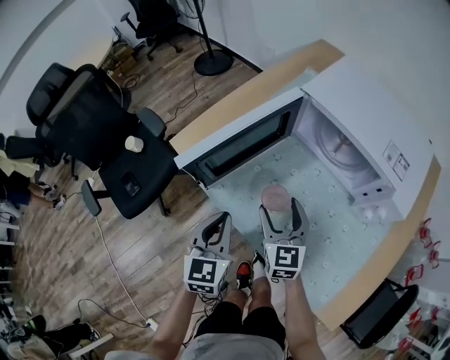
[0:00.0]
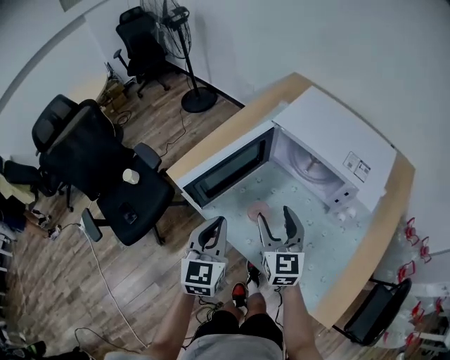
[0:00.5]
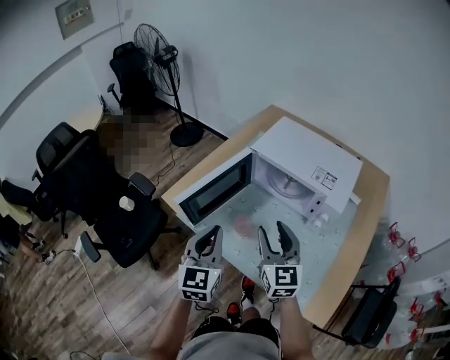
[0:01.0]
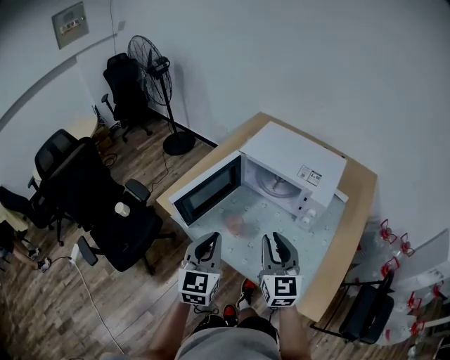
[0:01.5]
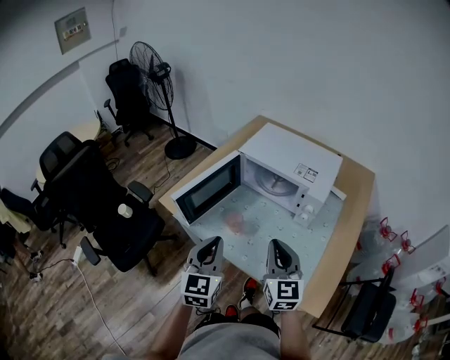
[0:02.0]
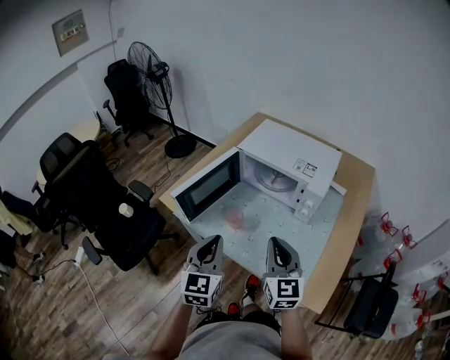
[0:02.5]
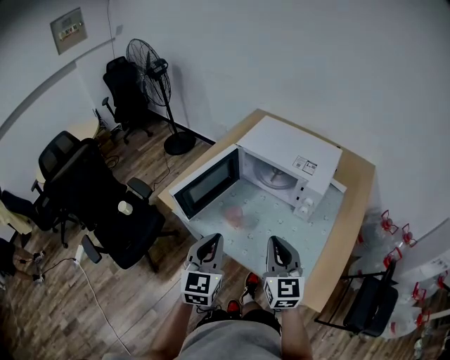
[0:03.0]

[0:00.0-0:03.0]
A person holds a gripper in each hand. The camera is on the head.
0:00.0 to 0:01.5: The left gripper shifts roughly 20 cm upward, while the right gripper goes roughly 25 cm upward, backward and to the right, and closes up.
0:01.5 to 0:03.0: The right gripper ends up roughly 5 cm from where it was.

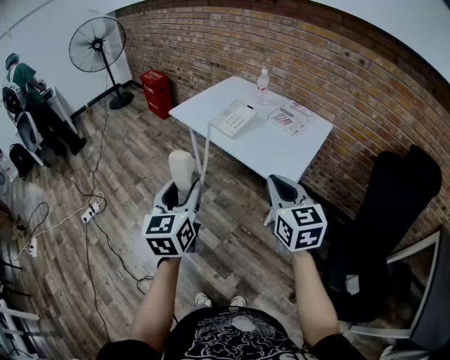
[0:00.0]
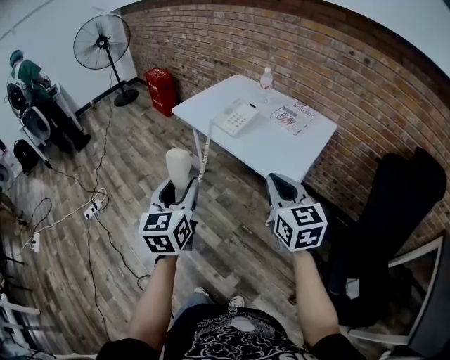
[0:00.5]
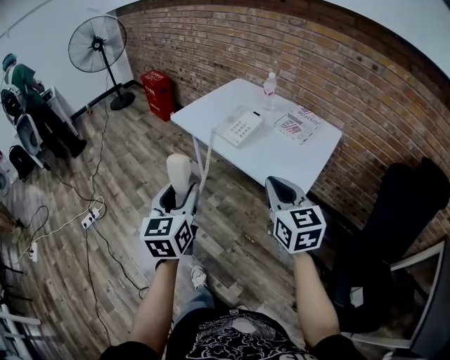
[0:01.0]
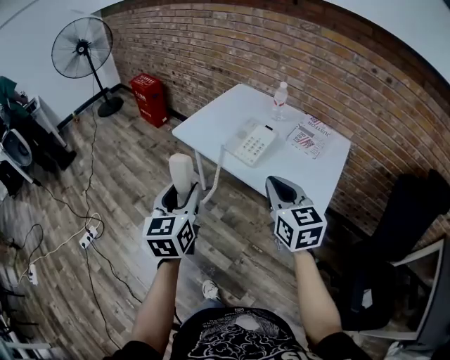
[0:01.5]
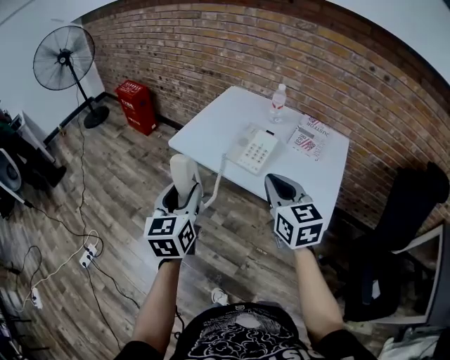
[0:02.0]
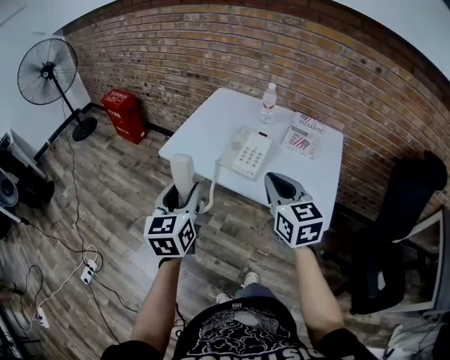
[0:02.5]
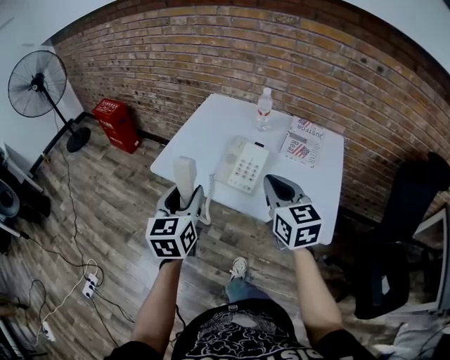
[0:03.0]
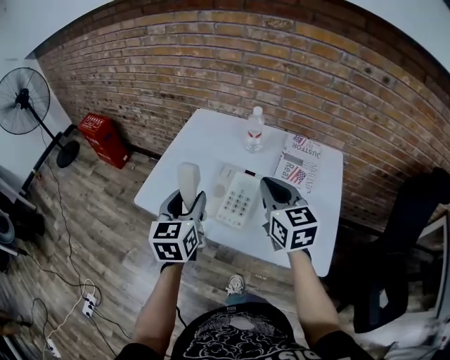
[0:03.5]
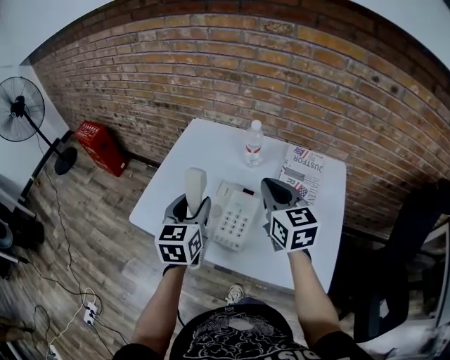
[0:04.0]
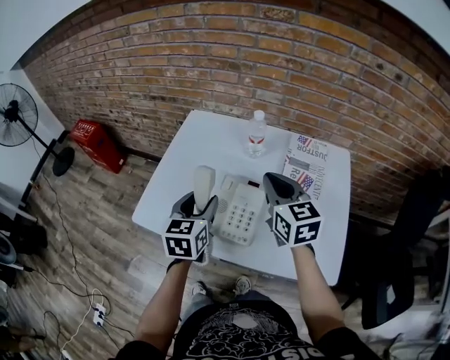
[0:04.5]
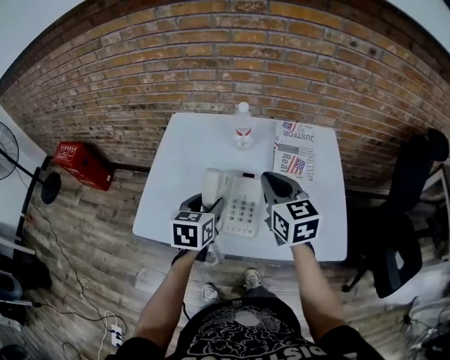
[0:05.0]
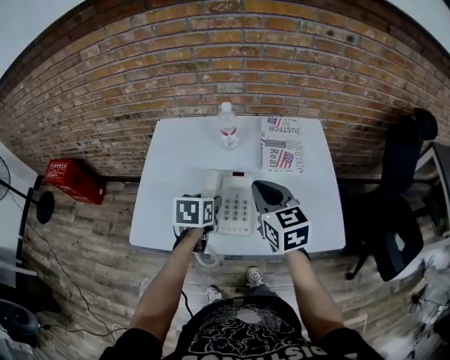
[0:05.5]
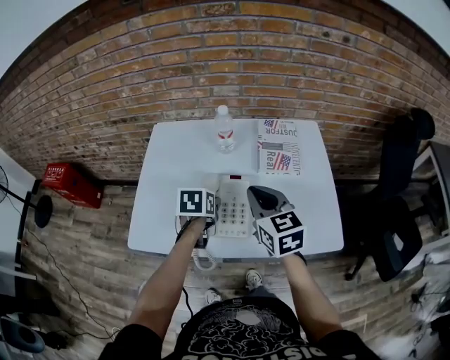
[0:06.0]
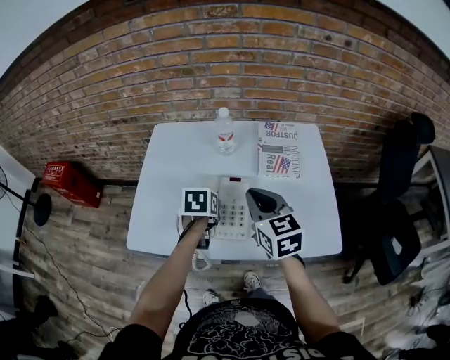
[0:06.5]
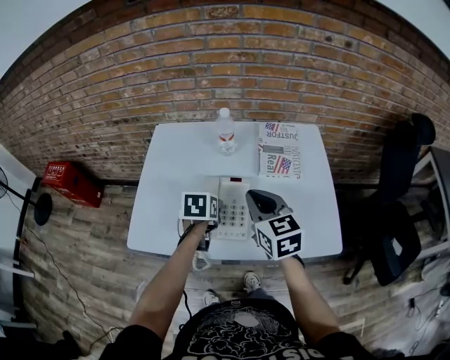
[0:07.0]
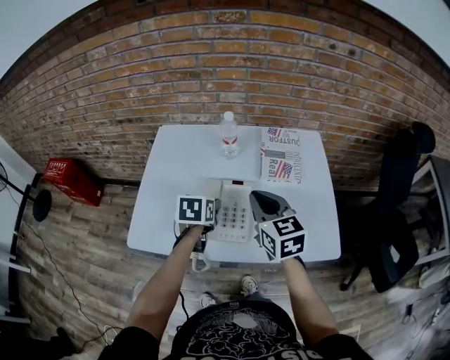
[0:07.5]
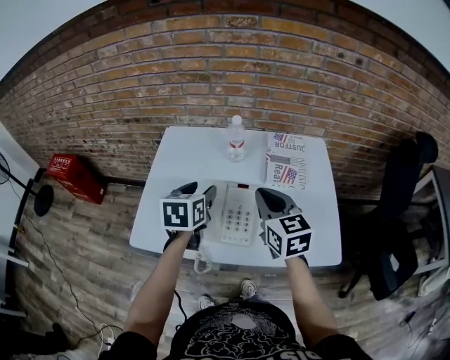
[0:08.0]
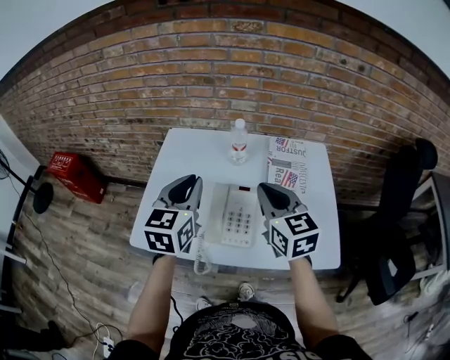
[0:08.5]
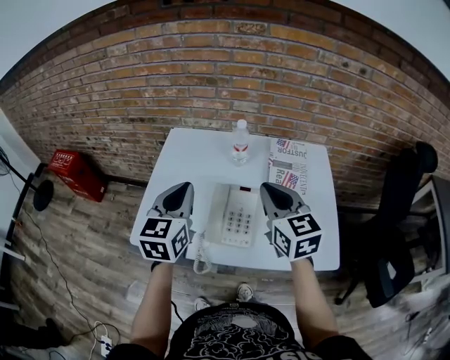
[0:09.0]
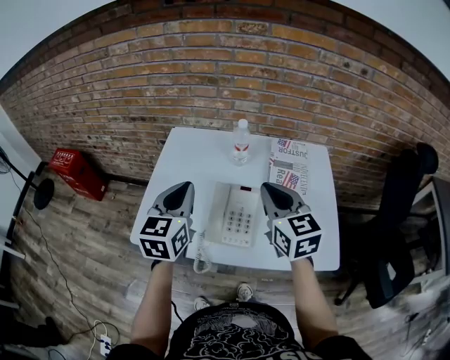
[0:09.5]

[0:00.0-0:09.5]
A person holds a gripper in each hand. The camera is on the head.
0:00.0 to 0:02.0: The grippers both shift forward and to the left by some 30 cm.
0:02.0 to 0:04.0: The two grippers go about 30 cm forward.
0:04.0 to 0:05.5: The right gripper shifts by some 5 cm. Meanwhile the left gripper is displaced downward by some 10 cm, and rotates approximately 40 degrees.
0:05.5 to 0:07.5: The grippers make only small movements.
0:07.5 to 0:09.5: The right gripper travels upward by some 5 cm. The left gripper moves upward, approximately 20 cm, angles its fingers upward, by about 40 degrees, and closes.

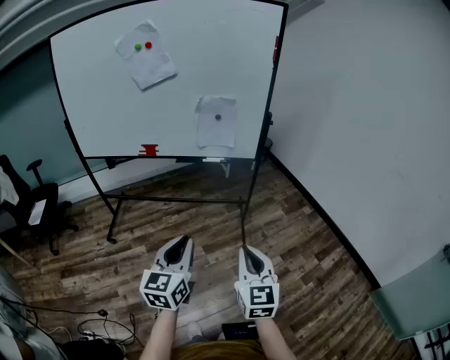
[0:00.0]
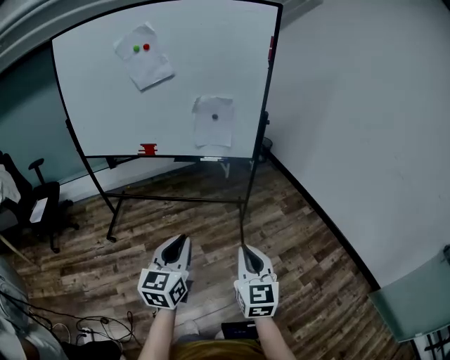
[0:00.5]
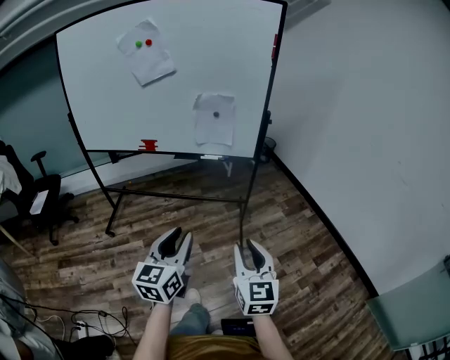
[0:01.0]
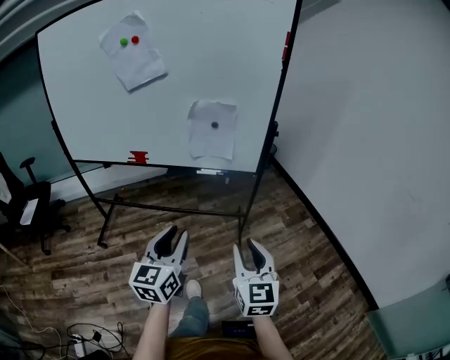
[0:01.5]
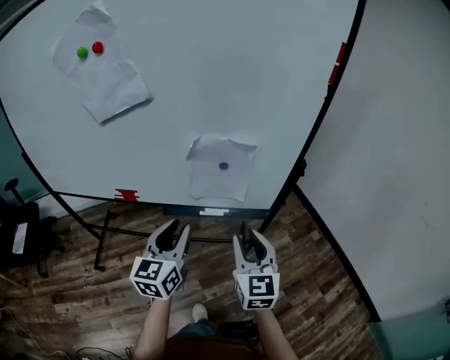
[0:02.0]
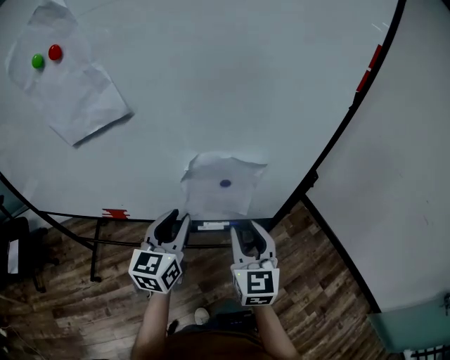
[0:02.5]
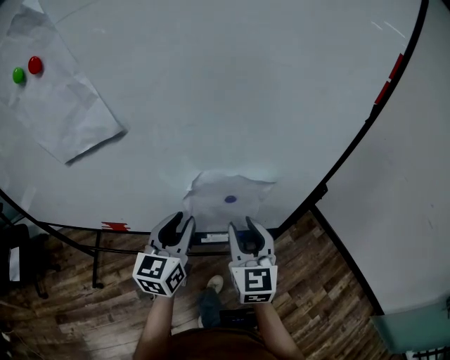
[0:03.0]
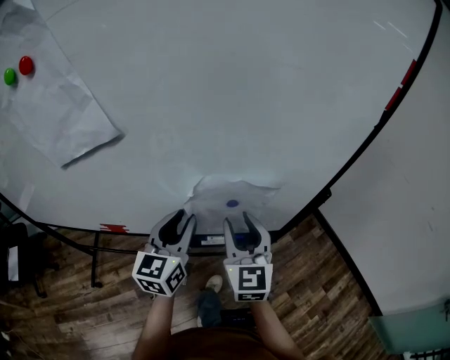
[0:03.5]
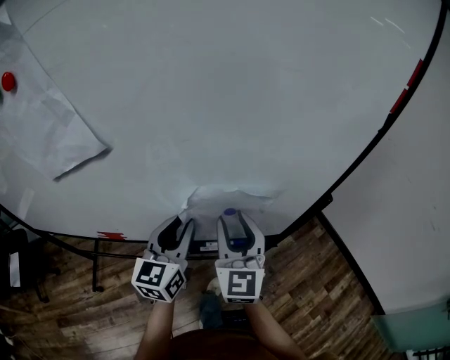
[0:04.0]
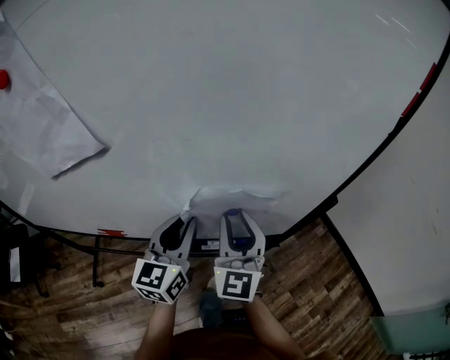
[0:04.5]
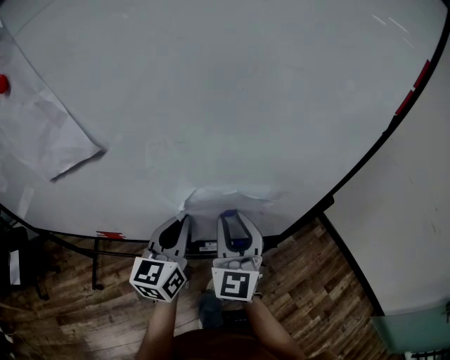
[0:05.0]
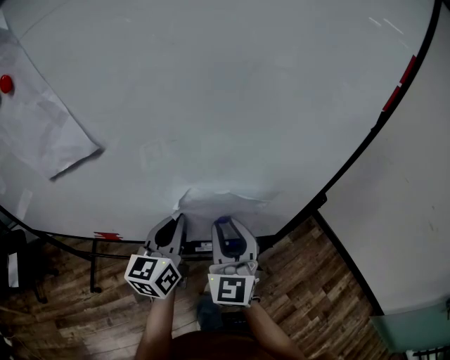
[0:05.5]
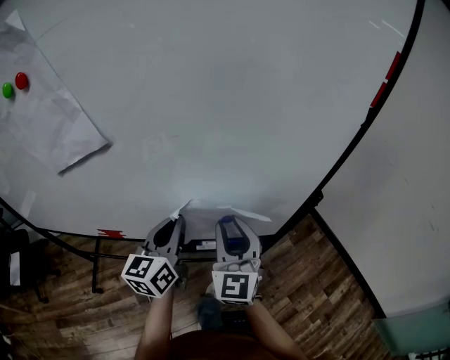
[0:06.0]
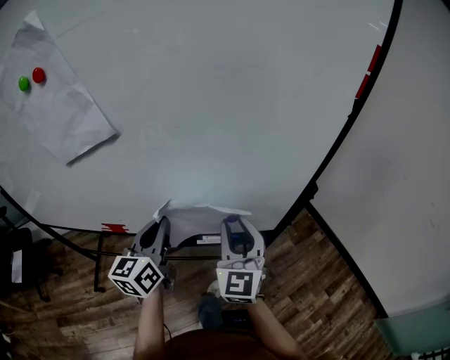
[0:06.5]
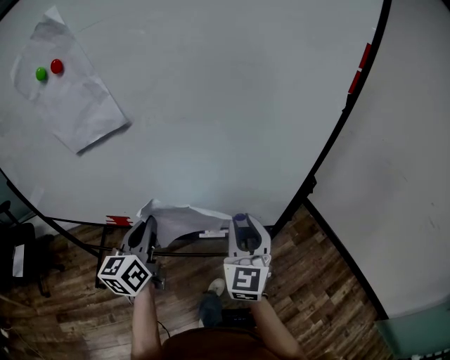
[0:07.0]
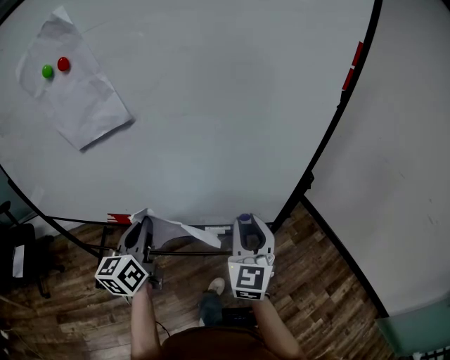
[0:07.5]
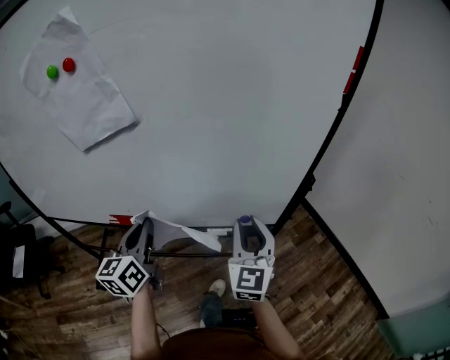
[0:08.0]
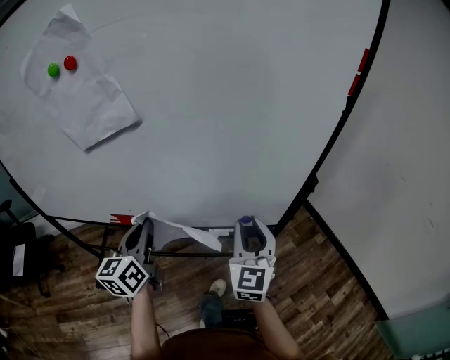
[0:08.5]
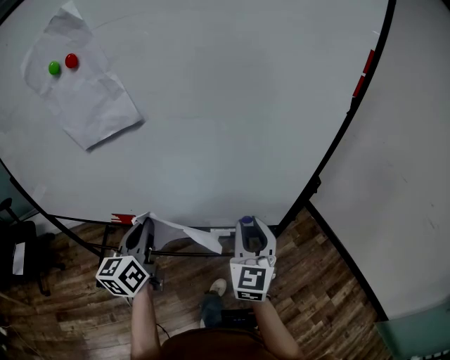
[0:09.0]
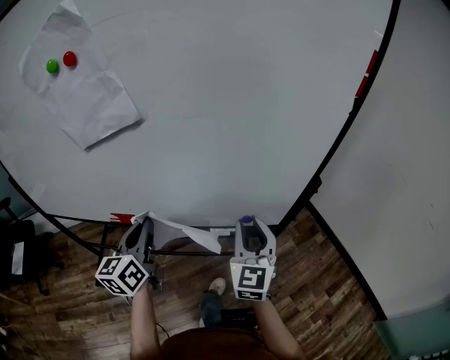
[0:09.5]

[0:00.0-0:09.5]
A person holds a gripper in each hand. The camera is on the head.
0:00.0 to 0:02.0: Both grippers are carried forward, some 40 cm. The left gripper opens up. The right gripper opens up.
0:02.0 to 0:04.0: The right gripper moves forward and to the left, approximately 20 cm. The left gripper heads forward, covering approximately 20 cm.
0:04.0 to 0:05.5: The left gripper closes its fingers.
0:05.5 to 0:07.5: The right gripper shifts about 10 cm backward and to the right. Meanwhile the left gripper shifts some 15 cm backward and to the left.
0:07.5 to 0:09.5: There are only small adjustments of the grippers.

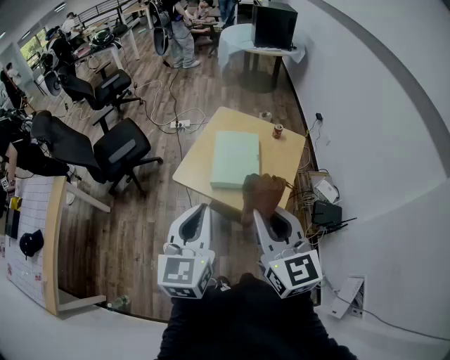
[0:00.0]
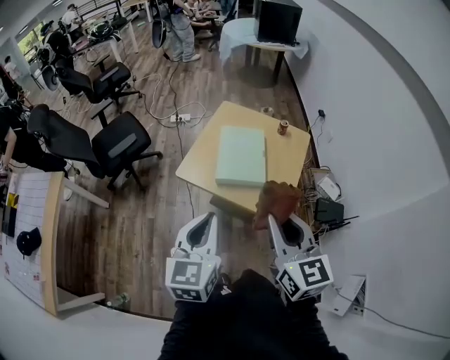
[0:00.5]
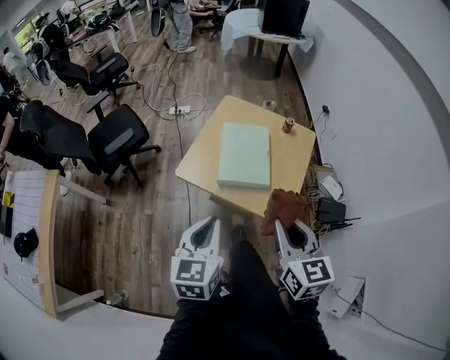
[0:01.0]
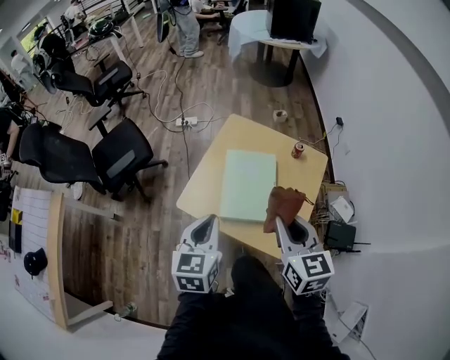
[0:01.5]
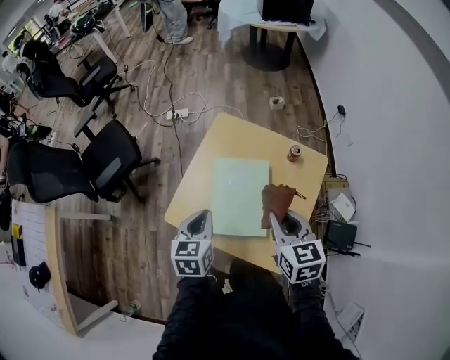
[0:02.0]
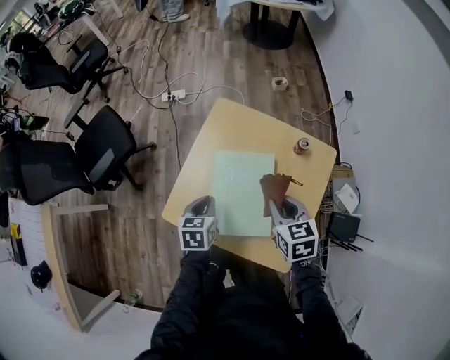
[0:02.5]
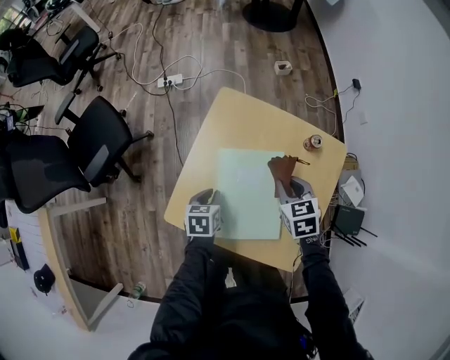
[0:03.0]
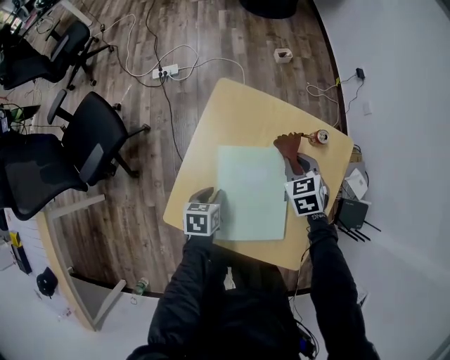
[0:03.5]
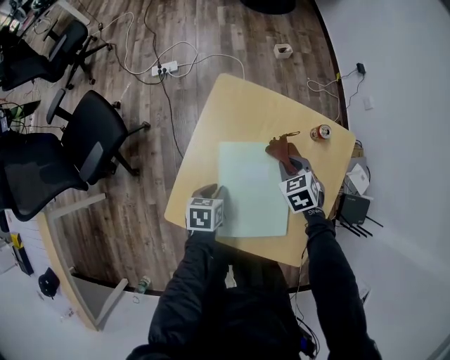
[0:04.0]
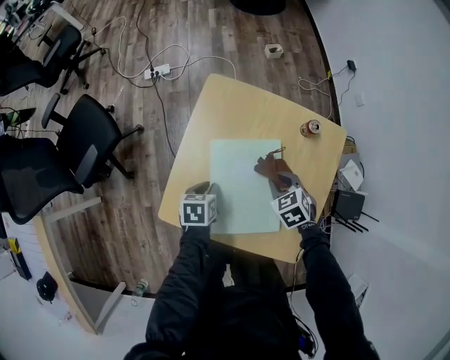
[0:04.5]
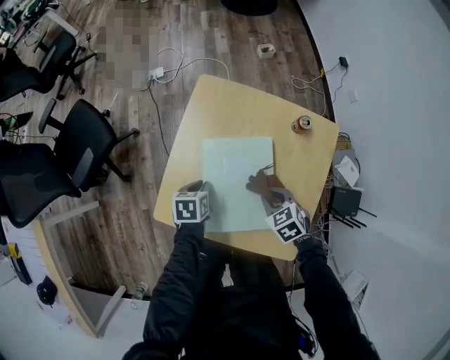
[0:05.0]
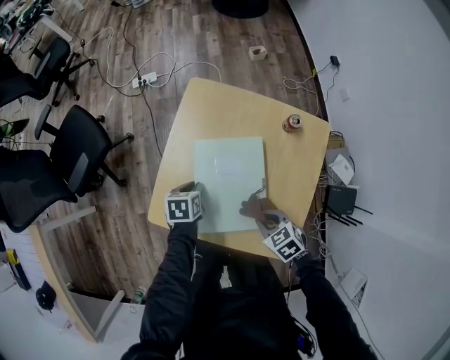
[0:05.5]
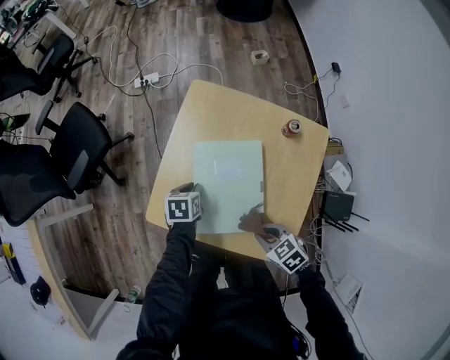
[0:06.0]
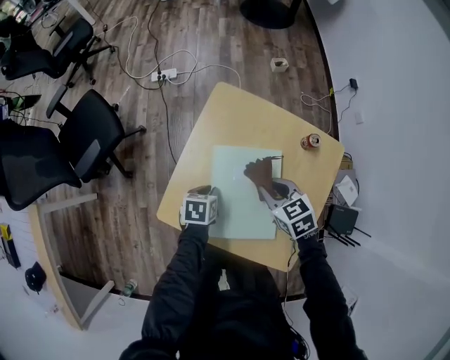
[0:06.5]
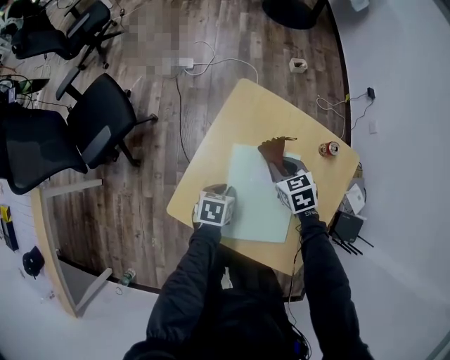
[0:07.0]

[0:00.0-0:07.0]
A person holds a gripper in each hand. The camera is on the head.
0:00.0 to 0:02.0: Both grippers move forward and downward, some 40 cm. The right gripper rotates some 30 degrees, while the left gripper turns by approximately 30 degrees.
0:02.0 to 0:03.5: Both grippers travel together downward and forward, some 30 cm. The left gripper rotates some 30 degrees. The right gripper turns by approximately 30 degrees.
0:03.5 to 0:05.0: The right gripper shifts some 15 cm backward.
0:05.0 to 0:07.0: The right gripper is displaced forward by some 15 cm.
